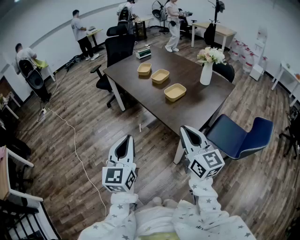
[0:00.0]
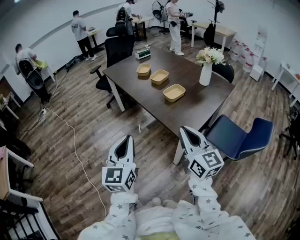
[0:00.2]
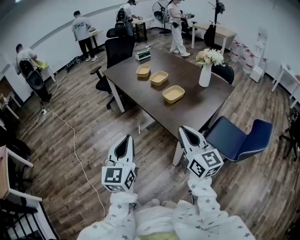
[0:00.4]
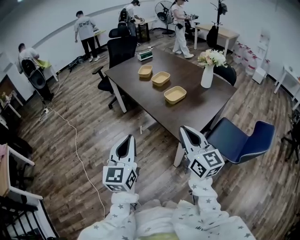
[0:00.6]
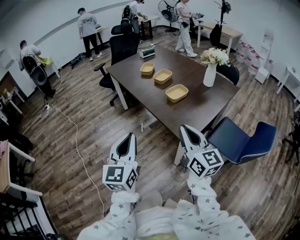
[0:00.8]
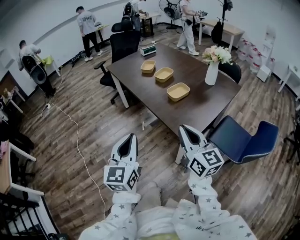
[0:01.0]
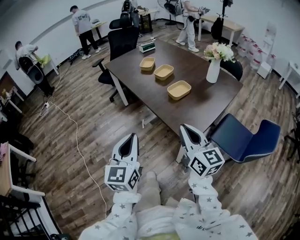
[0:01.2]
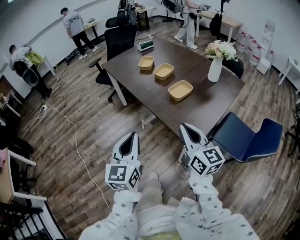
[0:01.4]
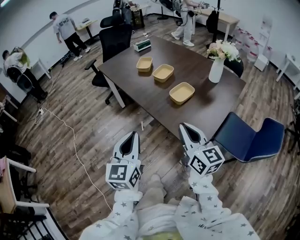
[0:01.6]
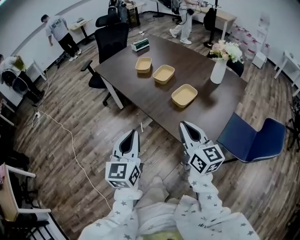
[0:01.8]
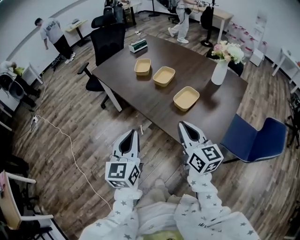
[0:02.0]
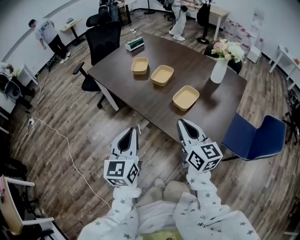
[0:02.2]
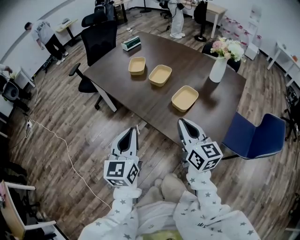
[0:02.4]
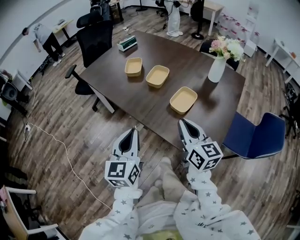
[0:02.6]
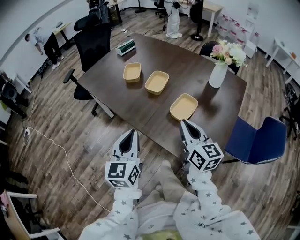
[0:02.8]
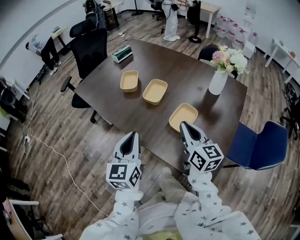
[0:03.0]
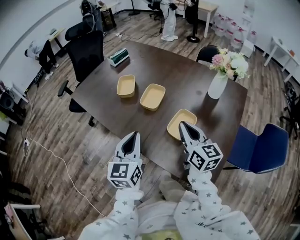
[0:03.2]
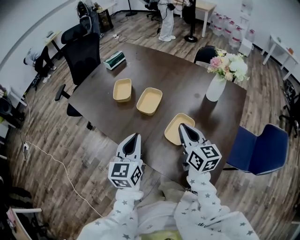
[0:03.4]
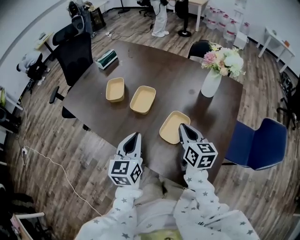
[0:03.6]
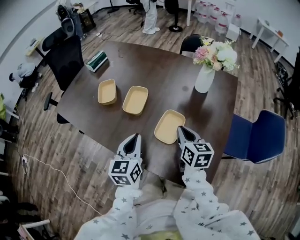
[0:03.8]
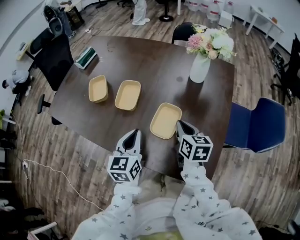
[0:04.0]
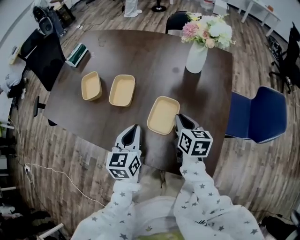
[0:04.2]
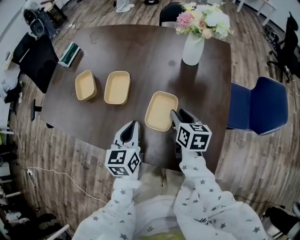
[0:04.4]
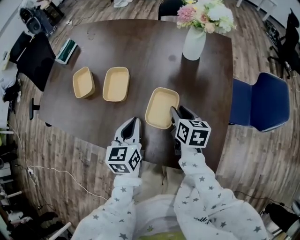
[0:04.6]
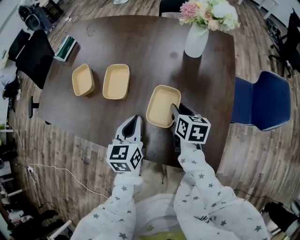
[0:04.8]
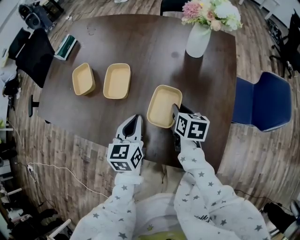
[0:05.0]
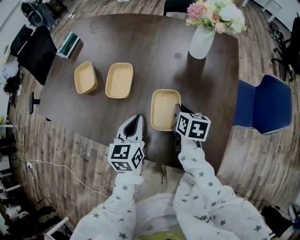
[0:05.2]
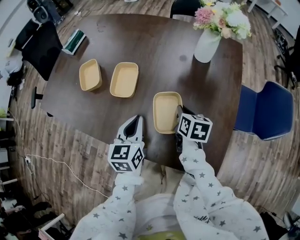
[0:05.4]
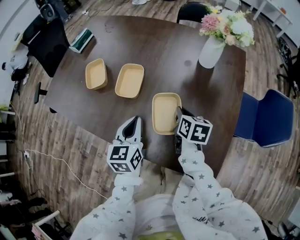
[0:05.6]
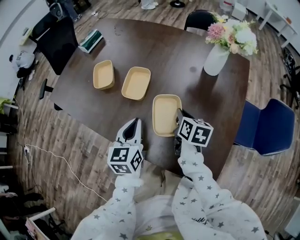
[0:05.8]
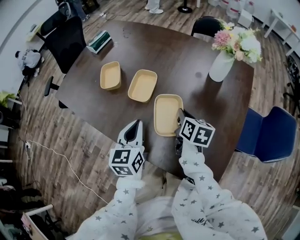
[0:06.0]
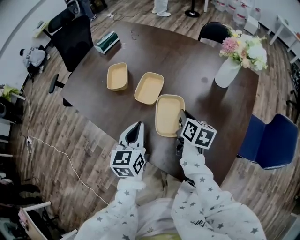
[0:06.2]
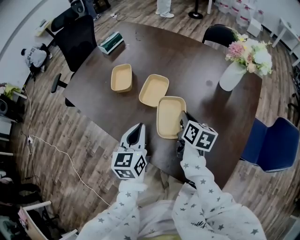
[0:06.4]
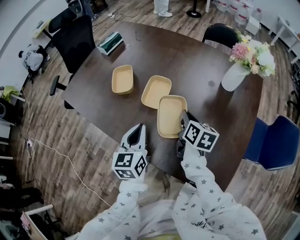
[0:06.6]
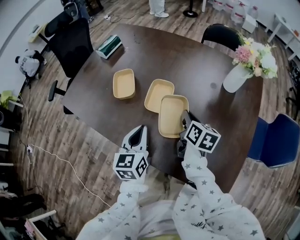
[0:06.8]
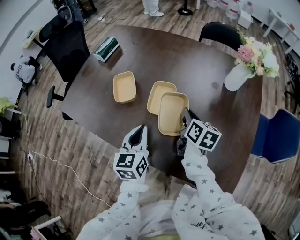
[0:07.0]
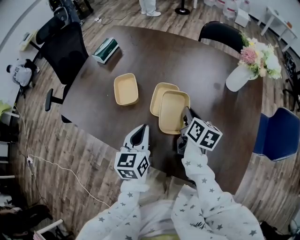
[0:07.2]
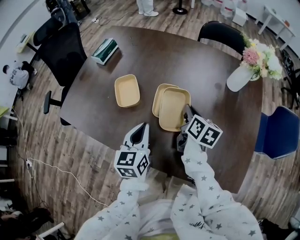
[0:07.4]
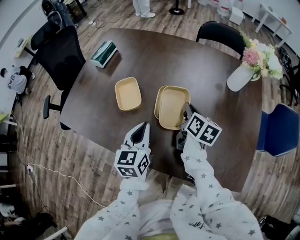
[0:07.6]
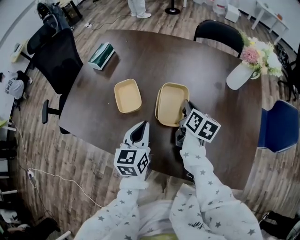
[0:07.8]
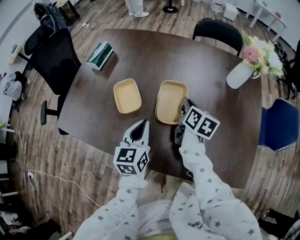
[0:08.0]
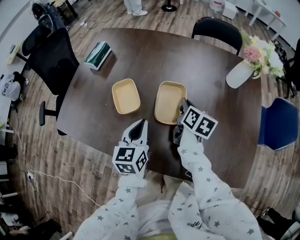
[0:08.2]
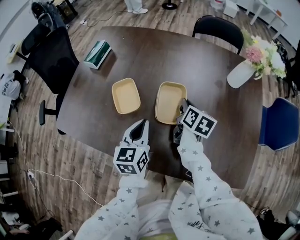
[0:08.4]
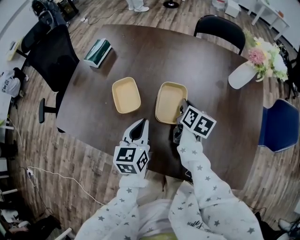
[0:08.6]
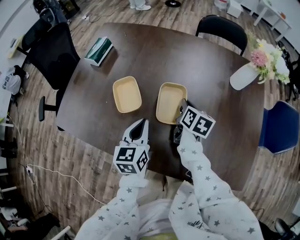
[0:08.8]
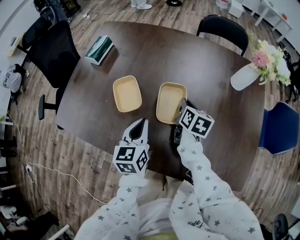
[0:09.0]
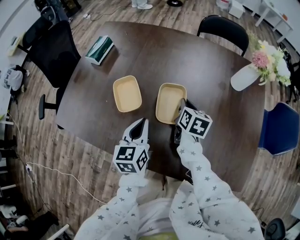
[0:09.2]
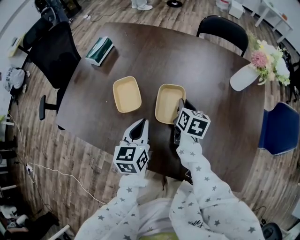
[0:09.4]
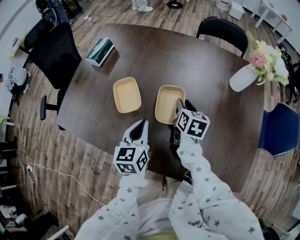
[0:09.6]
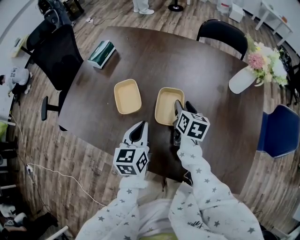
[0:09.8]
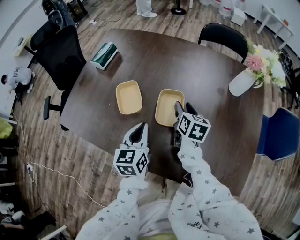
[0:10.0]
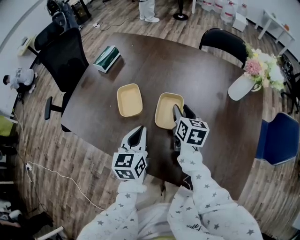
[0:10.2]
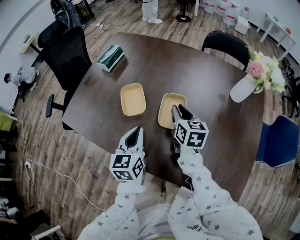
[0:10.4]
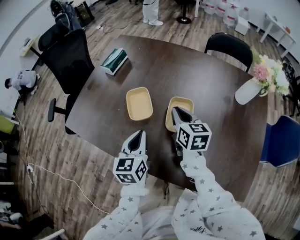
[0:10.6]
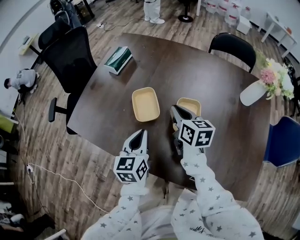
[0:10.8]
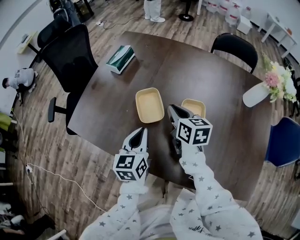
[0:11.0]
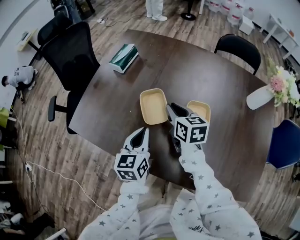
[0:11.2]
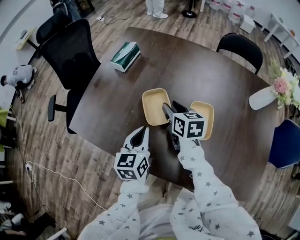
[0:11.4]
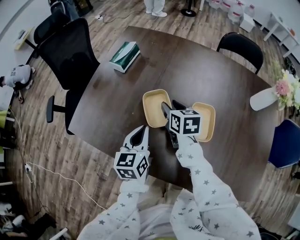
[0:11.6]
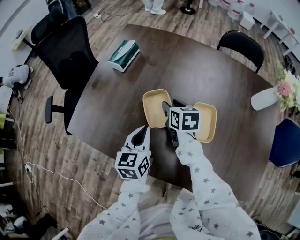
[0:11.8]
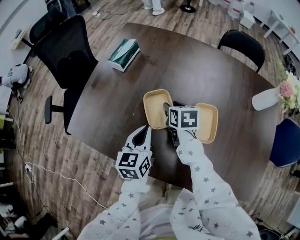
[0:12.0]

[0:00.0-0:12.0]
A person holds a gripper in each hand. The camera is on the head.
0.0 to 1.6 s: The two grippers go some 15 cm forward.
1.6 to 3.0 s: The grippers both shift forward by about 25 cm.
3.0 to 4.4 s: The right gripper shifts approximately 20 cm downward, to the right and forward, rotates approximately 40 degrees, and opens. Meanwhile the left gripper is displaced forward, downward and to the right by about 20 cm, and turns by approximately 30 degrees.
4.4 to 6.0 s: Both grippers move to the left, approximately 5 cm. The right gripper closes.
6.0 to 7.6 s: The left gripper shifts roughly 15 cm to the left and forward, while the right gripper is displaced forward and to the left by approximately 15 cm.
7.6 to 9.0 s: The right gripper ends up approximately 5 cm from where it was.
9.0 to 10.4 s: The right gripper shifts about 10 cm upward and to the left, and swivels roughly 20 degrees.
10.4 to 12.0 s: The left gripper is displaced forward and to the left by approximately 10 cm. Meanwhile the right gripper is displaced to the left, forward and downward by roughly 20 cm, and swivels some 20 degrees.

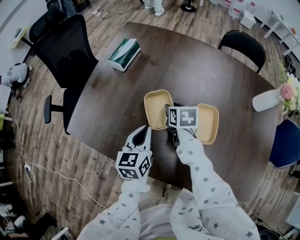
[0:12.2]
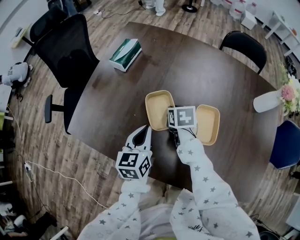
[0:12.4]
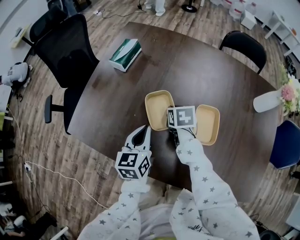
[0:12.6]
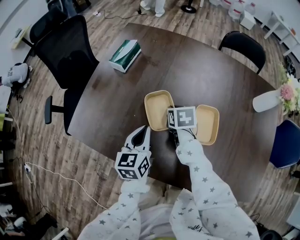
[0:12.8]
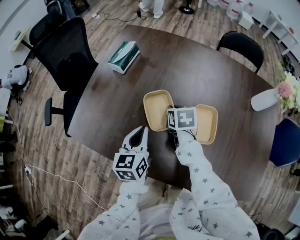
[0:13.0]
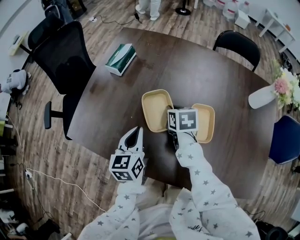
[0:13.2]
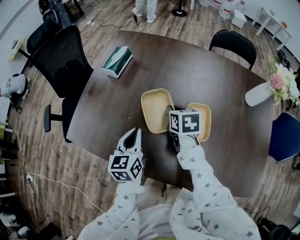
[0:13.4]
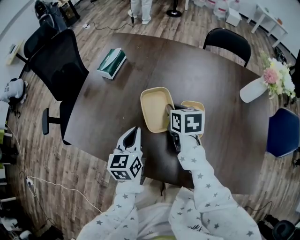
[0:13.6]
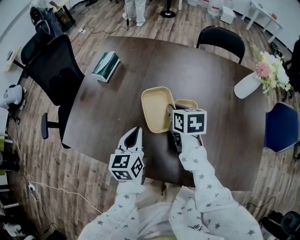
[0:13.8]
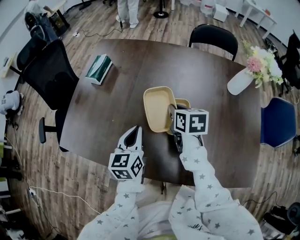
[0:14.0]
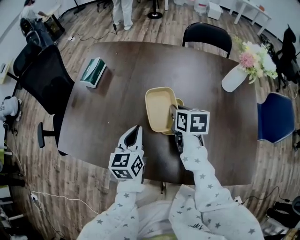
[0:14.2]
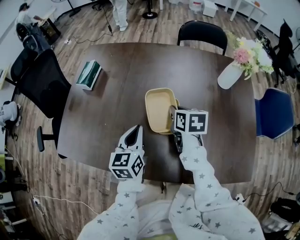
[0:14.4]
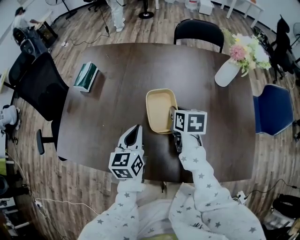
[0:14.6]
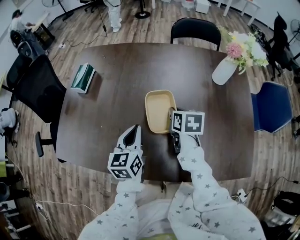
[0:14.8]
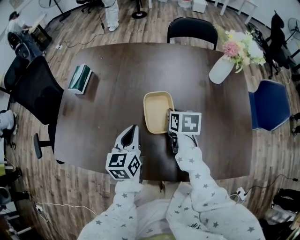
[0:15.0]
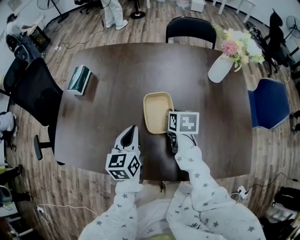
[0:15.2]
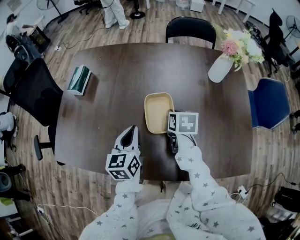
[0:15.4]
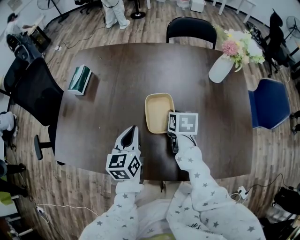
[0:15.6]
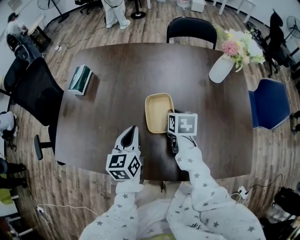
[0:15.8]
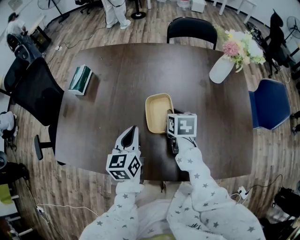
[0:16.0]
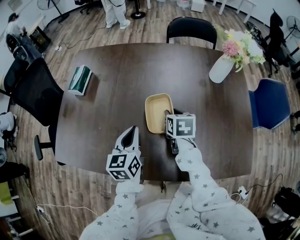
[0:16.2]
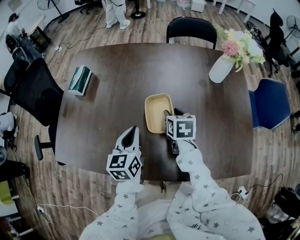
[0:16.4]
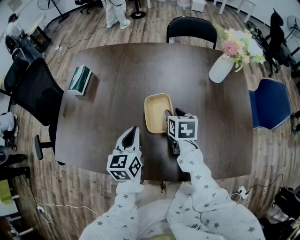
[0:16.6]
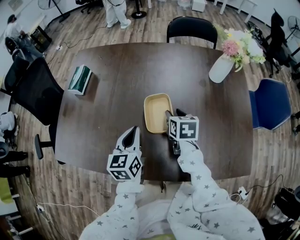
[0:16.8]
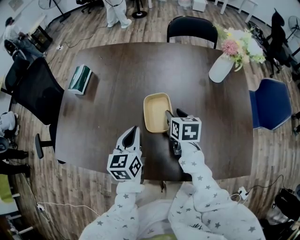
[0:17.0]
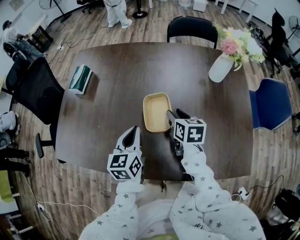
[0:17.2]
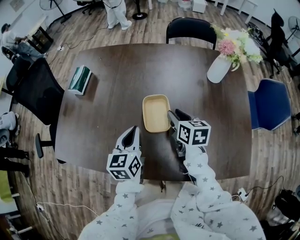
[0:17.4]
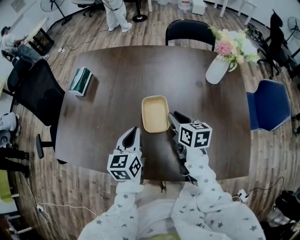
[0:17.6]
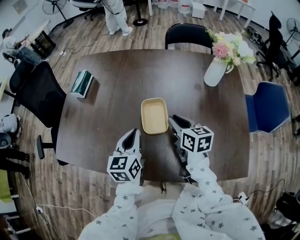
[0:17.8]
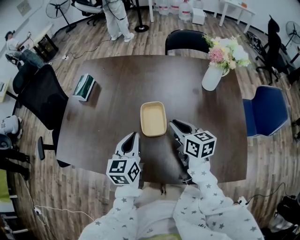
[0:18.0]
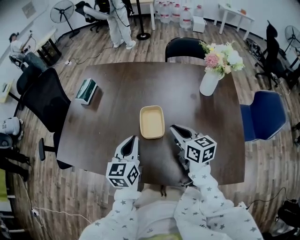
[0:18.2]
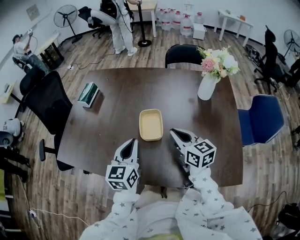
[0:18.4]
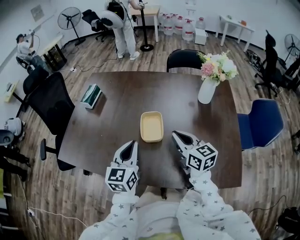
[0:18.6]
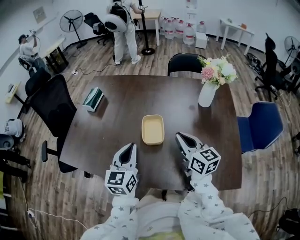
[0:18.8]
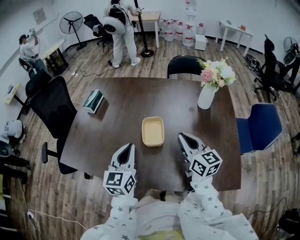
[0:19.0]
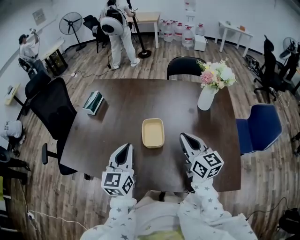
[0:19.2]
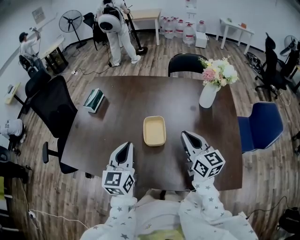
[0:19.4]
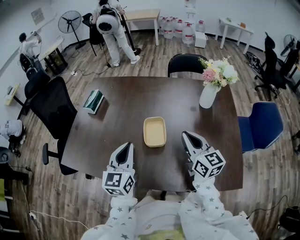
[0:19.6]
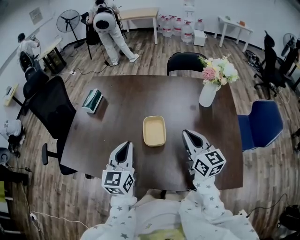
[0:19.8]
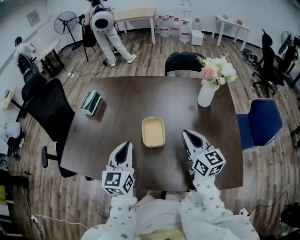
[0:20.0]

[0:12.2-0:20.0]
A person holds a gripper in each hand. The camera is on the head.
12.2 to 13.8 s: The right gripper heads upward and to the right, covering some 10 cm, and closes.
13.8 to 15.4 s: Both grippers travel together to the right, roughly 10 cm.
15.4 to 16.8 s: The right gripper opens.
16.8 to 18.4 s: The left gripper shifts about 10 cm upward and backward. The right gripper goes some 15 cm upward and backward, points its fingers some 30 degrees further upward, and closes.
18.4 to 20.0 s: The left gripper moves about 5 cm; the right gripper goes about 5 cm upward.

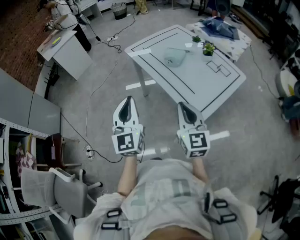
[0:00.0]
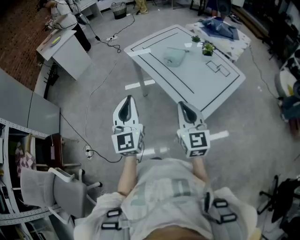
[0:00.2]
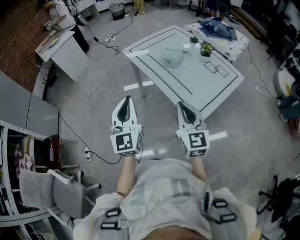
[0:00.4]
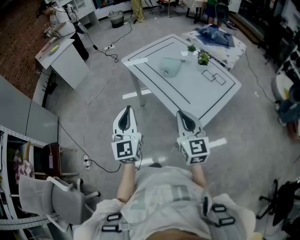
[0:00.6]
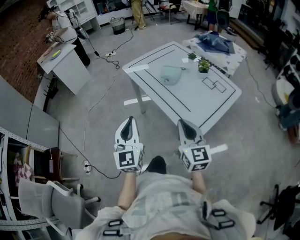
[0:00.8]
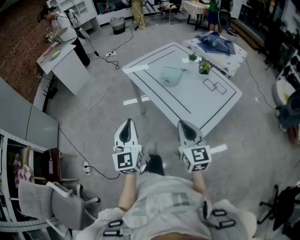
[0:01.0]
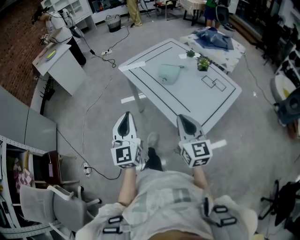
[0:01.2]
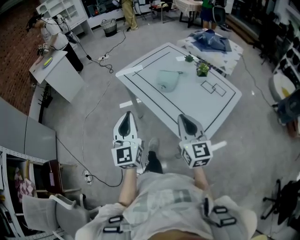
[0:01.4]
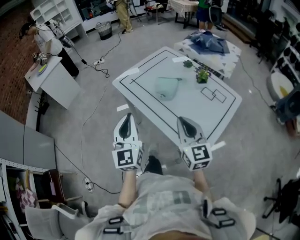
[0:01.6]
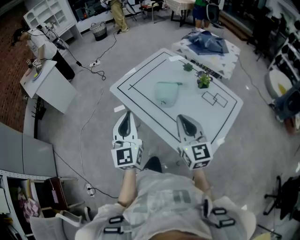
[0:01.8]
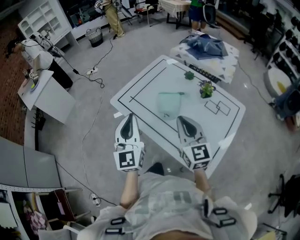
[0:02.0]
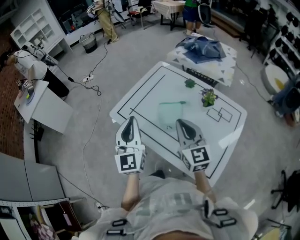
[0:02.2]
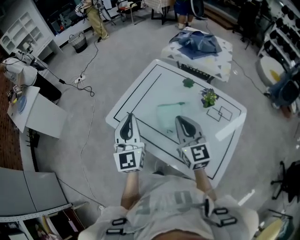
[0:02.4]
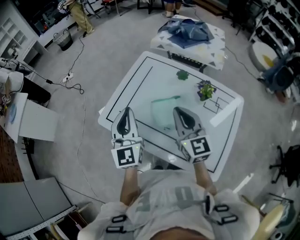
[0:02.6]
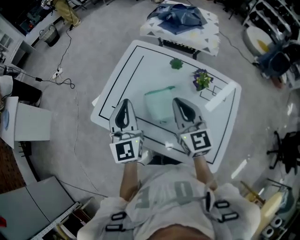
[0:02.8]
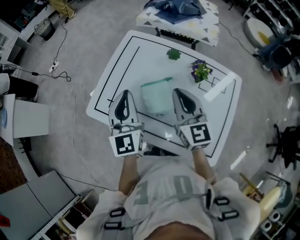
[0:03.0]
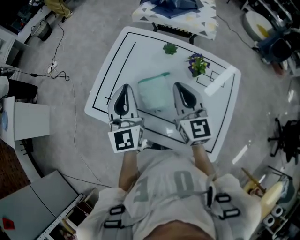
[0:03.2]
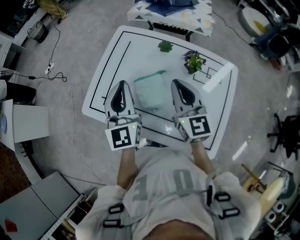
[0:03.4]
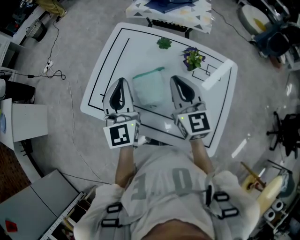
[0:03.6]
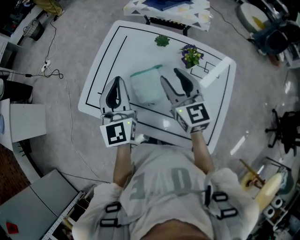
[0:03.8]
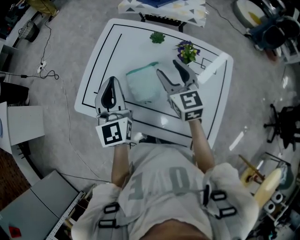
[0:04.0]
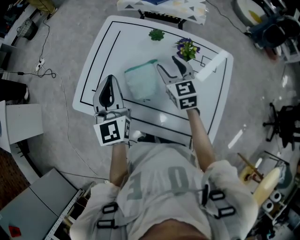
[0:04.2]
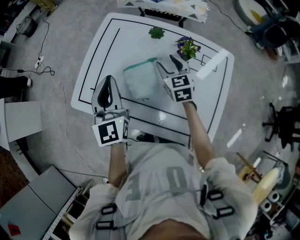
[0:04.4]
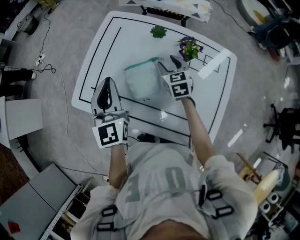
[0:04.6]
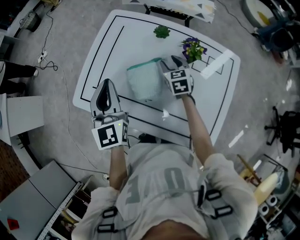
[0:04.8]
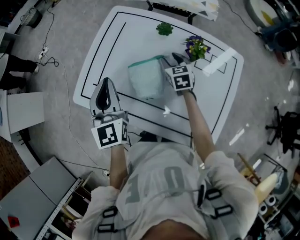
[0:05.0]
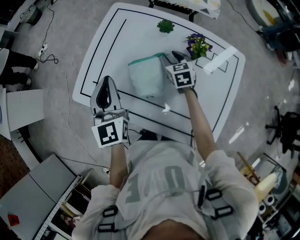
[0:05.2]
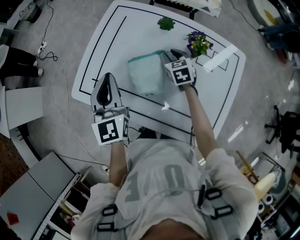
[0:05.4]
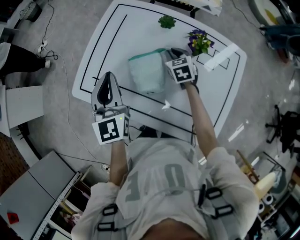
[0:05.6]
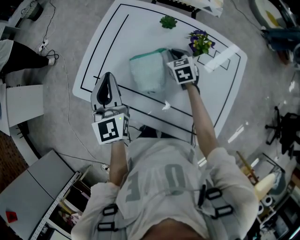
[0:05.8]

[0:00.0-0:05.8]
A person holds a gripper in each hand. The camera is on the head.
0.0 to 1.4 s: Both grippers move forward, roughly 10 cm.
1.4 to 2.8 s: Both grippers travel together forward, approximately 40 cm. The left gripper turns by about 20 degrees.
2.8 to 4.4 s: The left gripper changes place by approximately 5 cm; the right gripper goes about 20 cm downward, forward and to the right, changes its angle by roughly 20 degrees, and opens.
4.4 to 5.8 s: The right gripper travels downward by some 10 cm, and closes.
